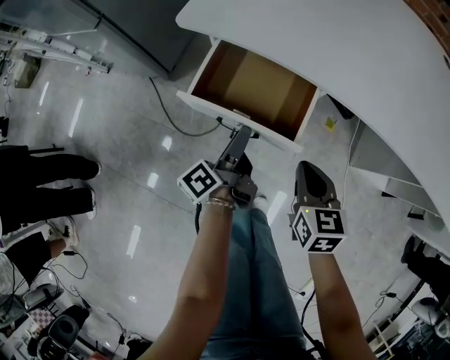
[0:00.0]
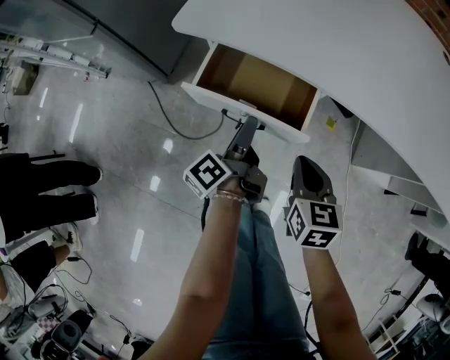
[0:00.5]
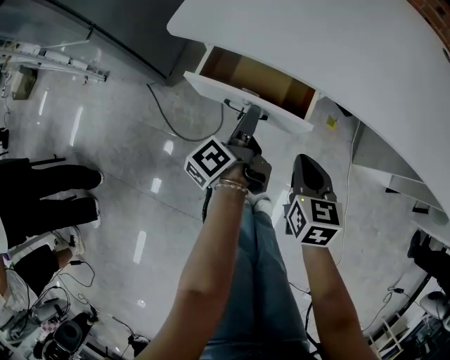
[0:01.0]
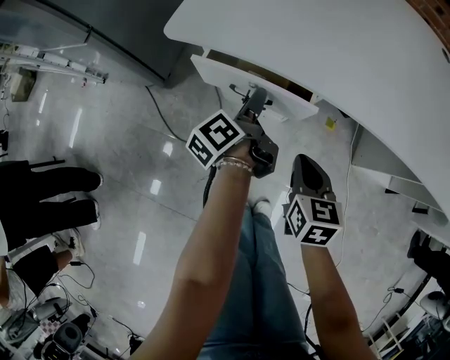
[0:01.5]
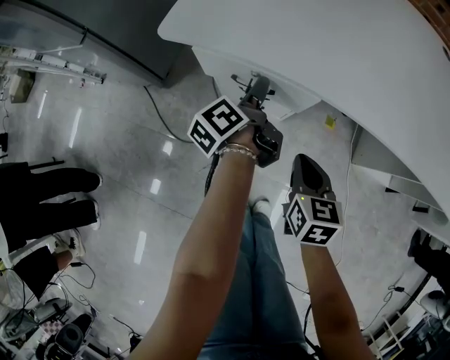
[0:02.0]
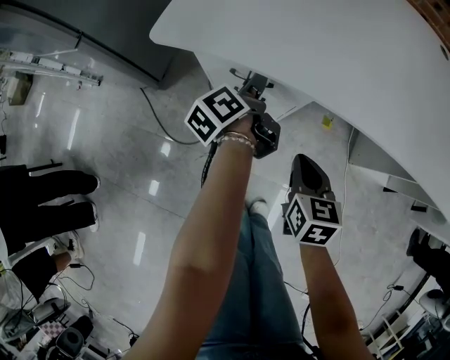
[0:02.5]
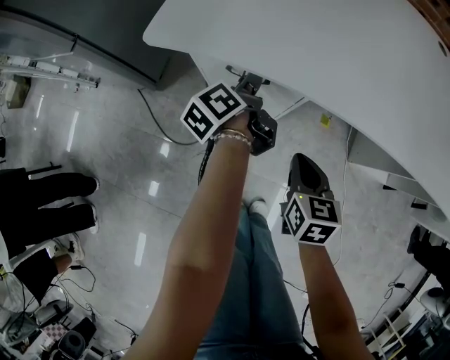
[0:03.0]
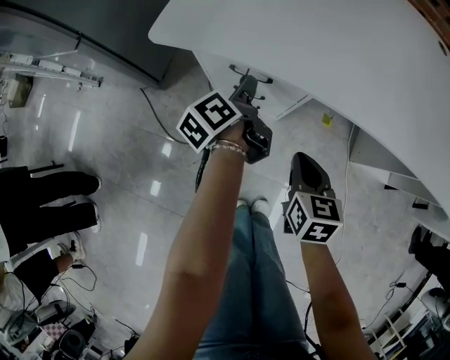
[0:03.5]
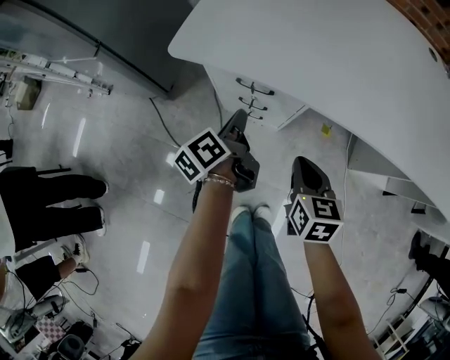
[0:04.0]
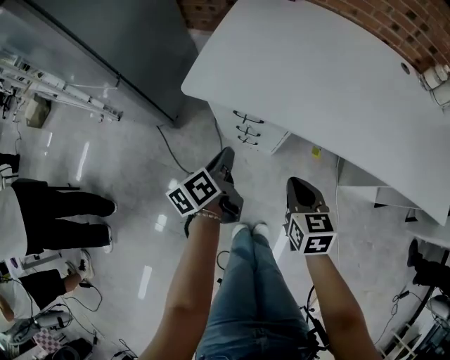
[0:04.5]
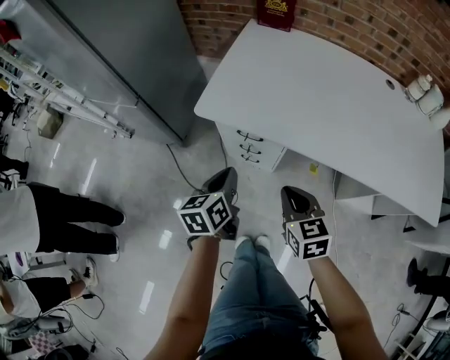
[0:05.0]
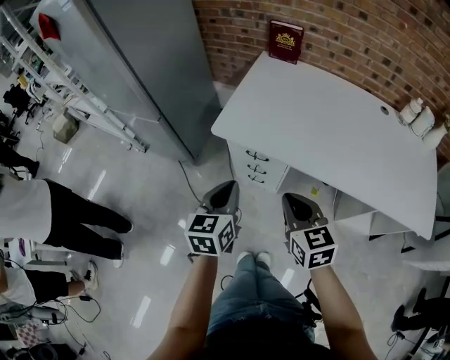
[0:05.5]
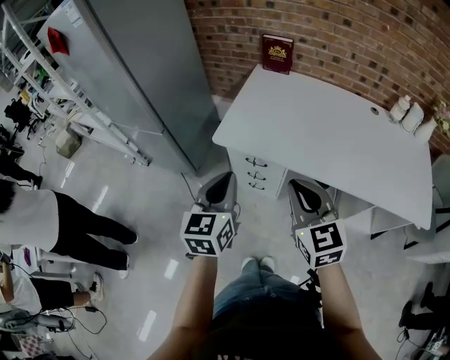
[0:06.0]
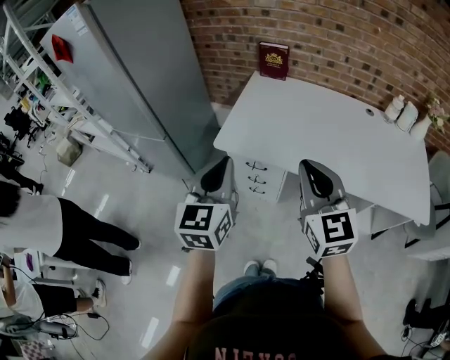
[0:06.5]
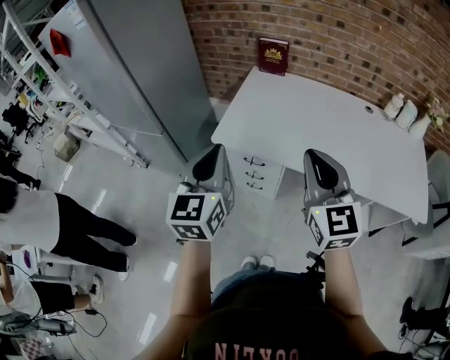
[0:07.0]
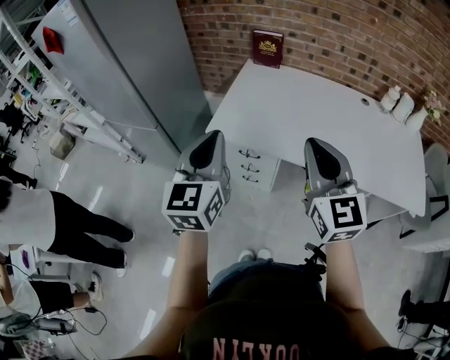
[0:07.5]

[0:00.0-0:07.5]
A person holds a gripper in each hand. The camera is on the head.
0:00.0 to 0:02.0: The left gripper shifts roughly 15 cm forward.
0:02.0 to 0:04.0: The left gripper moves backward, roughly 5 cm, and closes its fingers.
0:04.0 to 0:05.5: The right gripper shifts about 25 cm upward, and changes its angle by some 30 degrees. The left gripper moves upward and backward, about 30 cm, and twists approximately 50 degrees clockwise, seen from behind.
0:05.5 to 0:07.5: Both grippers travel together upward, approximately 20 cm. The left gripper rotates approximately 20 degrees; the right gripper swivels some 30 degrees.

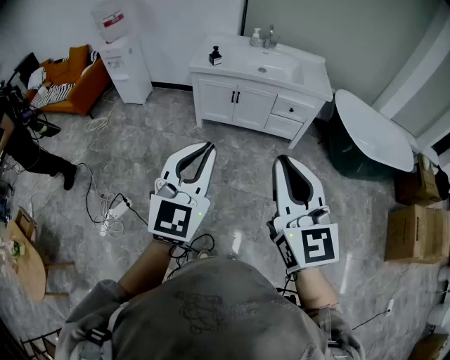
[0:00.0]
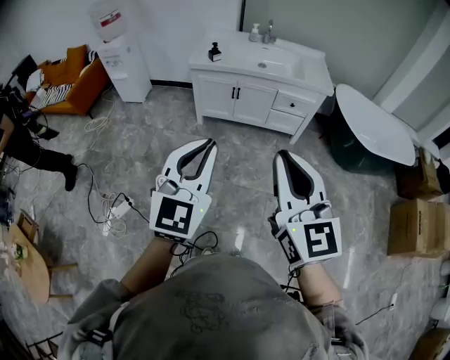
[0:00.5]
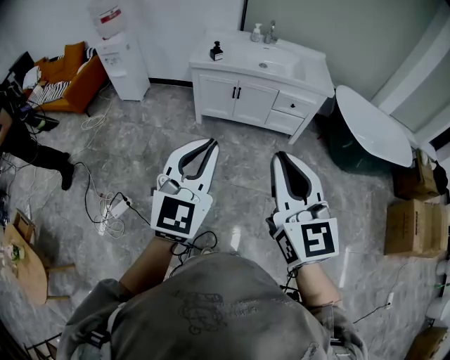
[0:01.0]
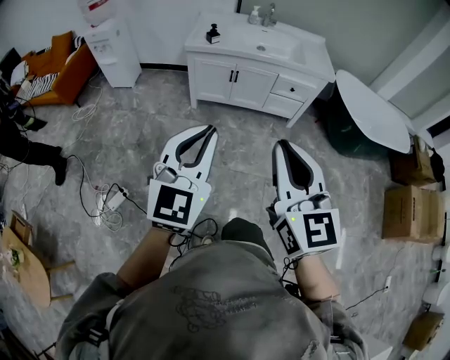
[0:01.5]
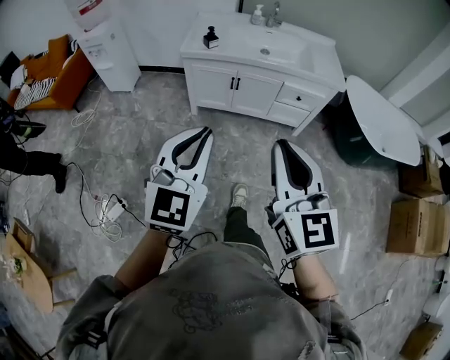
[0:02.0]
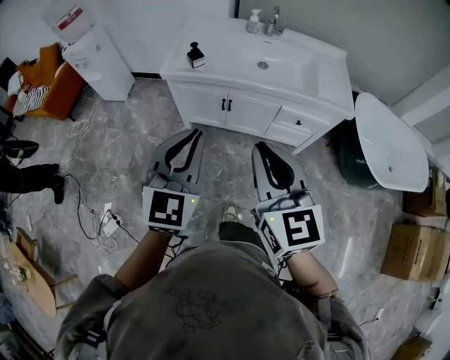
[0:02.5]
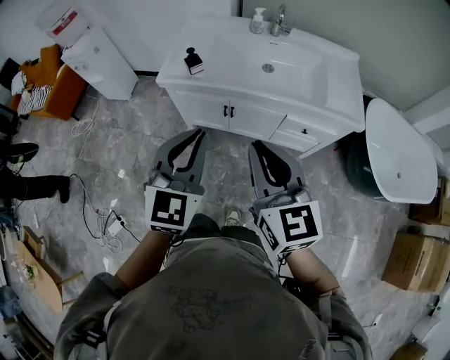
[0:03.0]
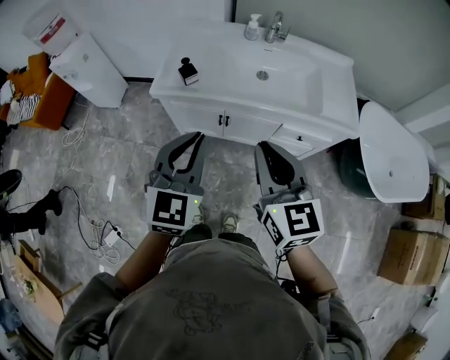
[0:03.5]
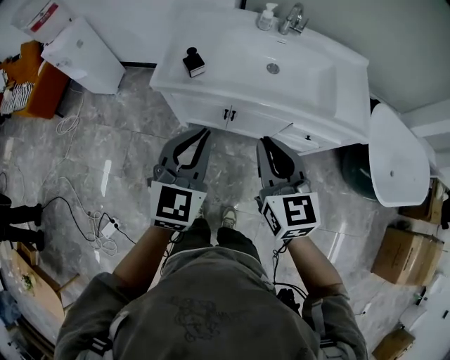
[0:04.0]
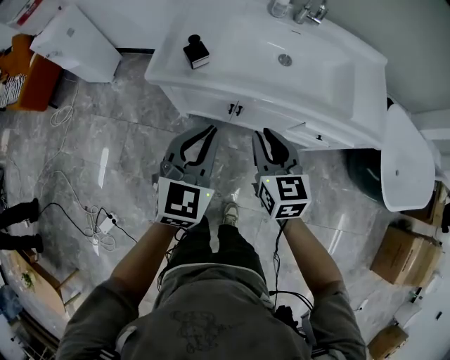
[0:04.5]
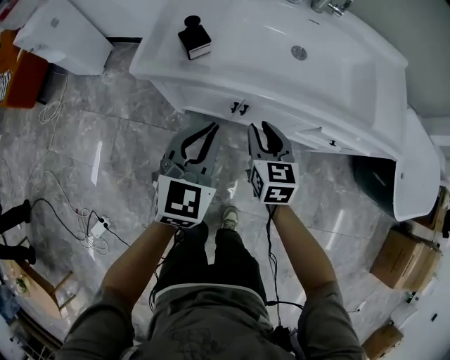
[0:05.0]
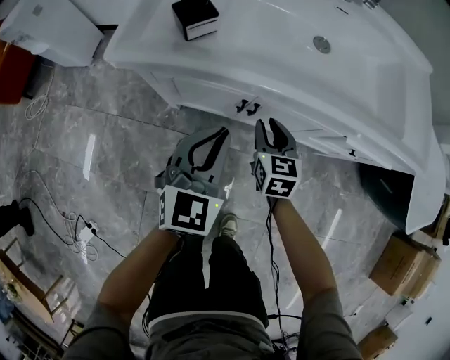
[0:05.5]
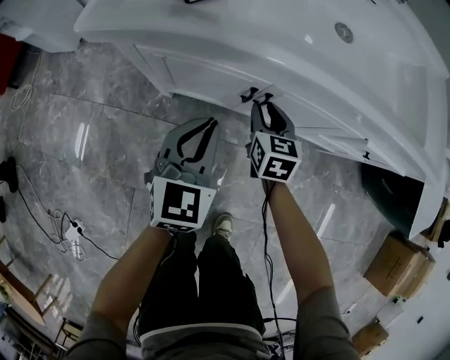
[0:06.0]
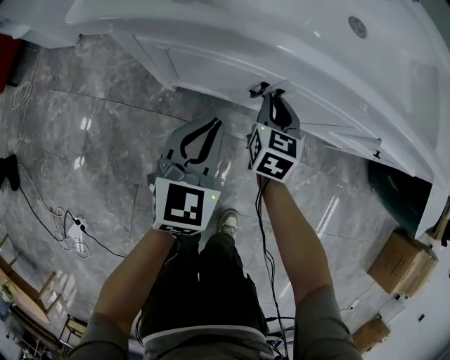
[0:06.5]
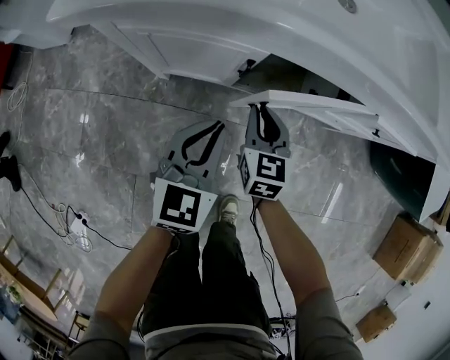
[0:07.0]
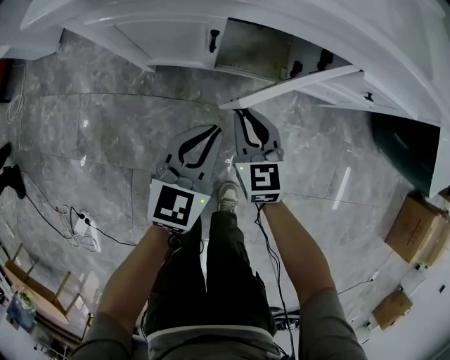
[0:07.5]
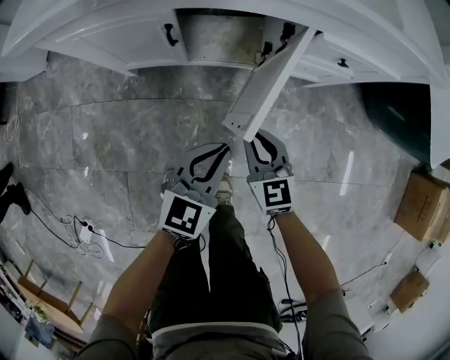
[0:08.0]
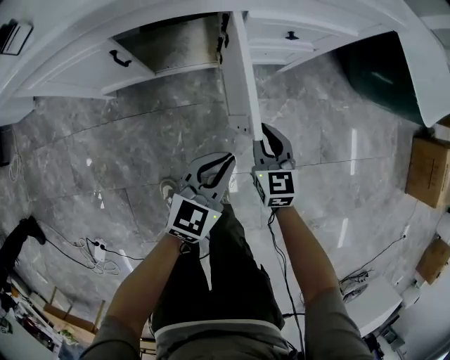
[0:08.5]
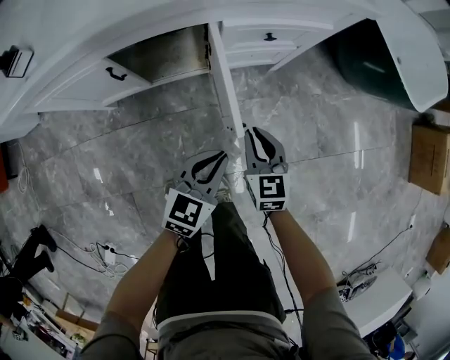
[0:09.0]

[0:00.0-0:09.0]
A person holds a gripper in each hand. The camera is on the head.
0:00.0 to 0:02.0: The two grippers go about 20 cm forward.
0:02.0 to 0:04.5: The two grippers travel together, forward, roughly 50 cm. The right gripper shifts some 25 cm downward, and changes its angle by roughly 30 degrees.
0:04.5 to 0:07.0: Both grippers travel together downward, roughly 40 cm.
0:07.0 to 0:09.0: The left gripper is displaced to the right by approximately 30 cm, and changes its angle by roughly 30 degrees; the right gripper is displaced to the right and backward by roughly 35 cm.

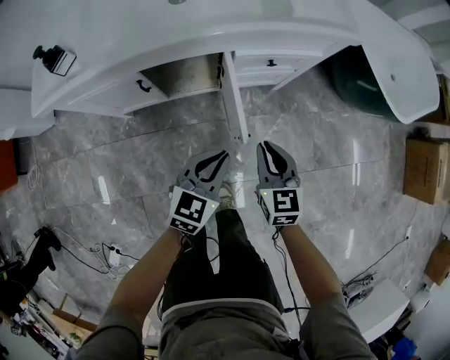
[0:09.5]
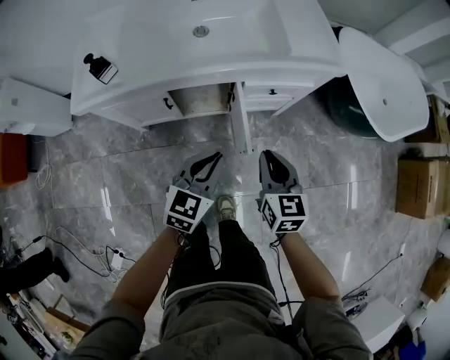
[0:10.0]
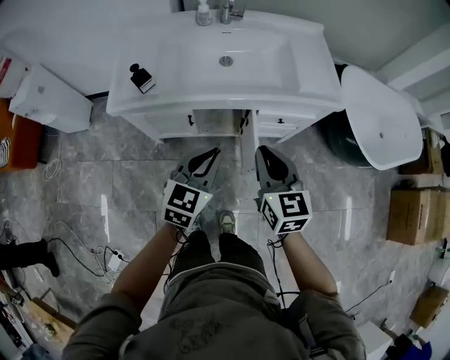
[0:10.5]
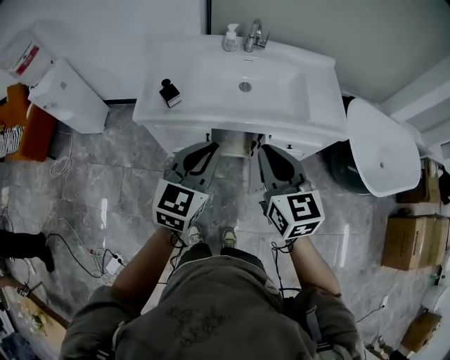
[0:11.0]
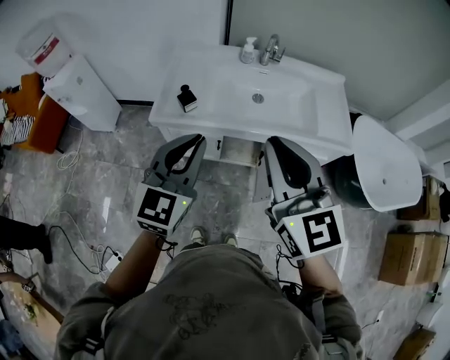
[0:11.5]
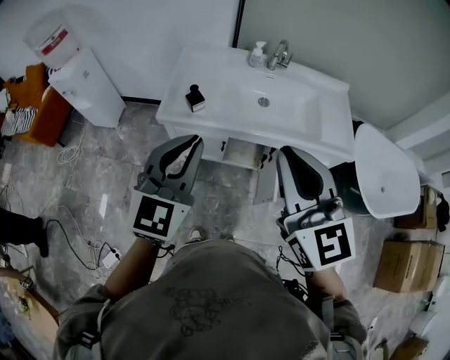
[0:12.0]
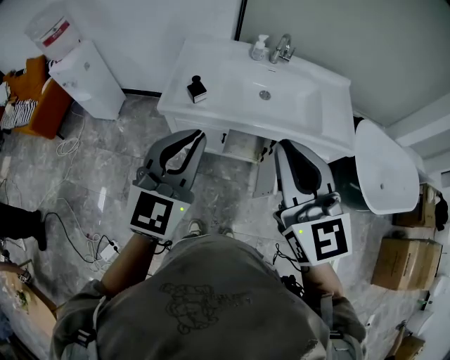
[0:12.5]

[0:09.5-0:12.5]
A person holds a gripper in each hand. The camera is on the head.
0:09.5 to 0:11.0: Both grippers move upward and to the left, about 40 cm. The left gripper turns by roughly 30 degrees. Meanwhile the right gripper turns by some 20 degrees.
0:11.0 to 0:12.5: Both grippers move upward, to the left and backward, approximately 15 cm.

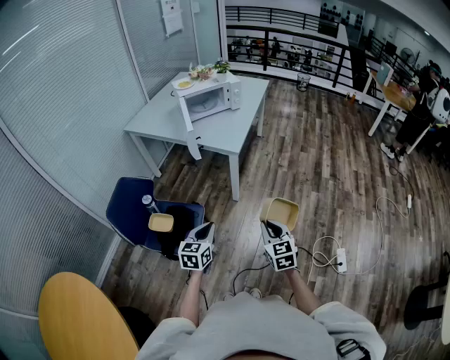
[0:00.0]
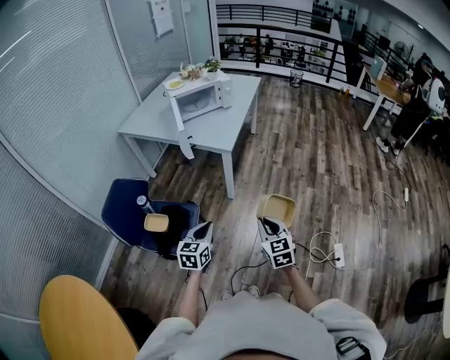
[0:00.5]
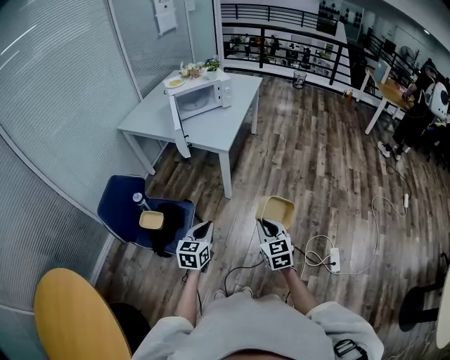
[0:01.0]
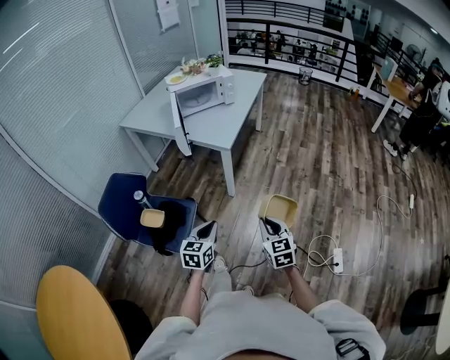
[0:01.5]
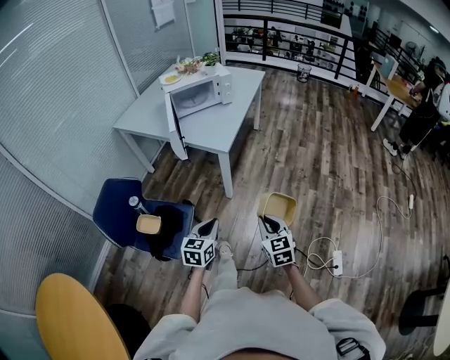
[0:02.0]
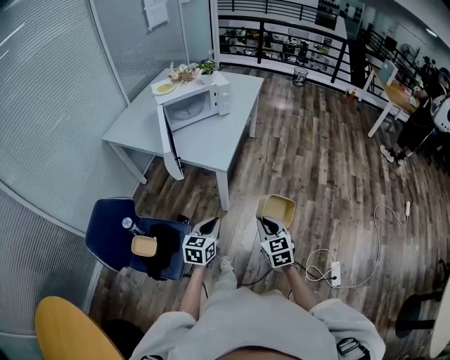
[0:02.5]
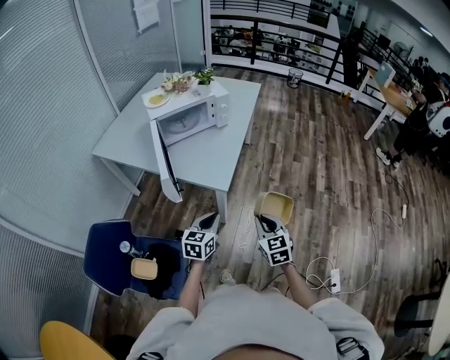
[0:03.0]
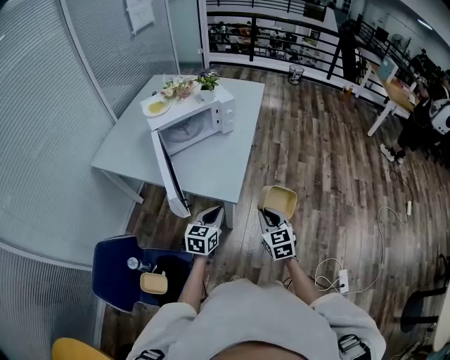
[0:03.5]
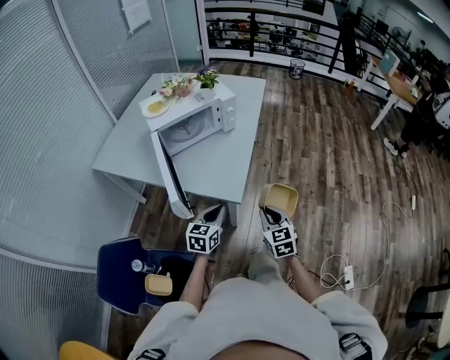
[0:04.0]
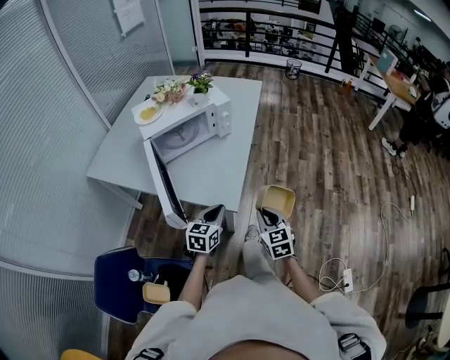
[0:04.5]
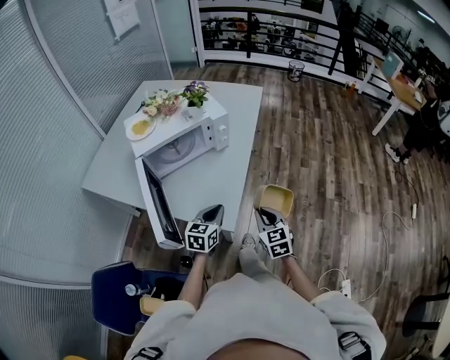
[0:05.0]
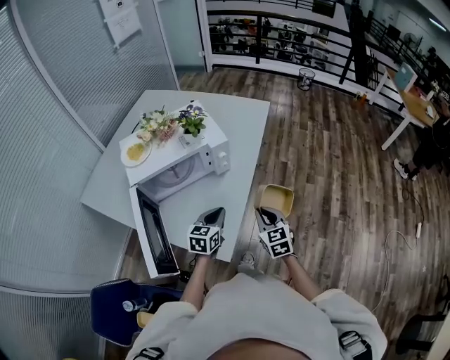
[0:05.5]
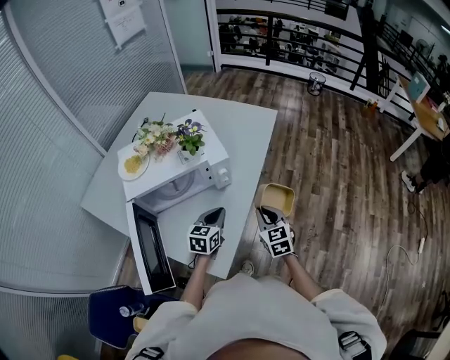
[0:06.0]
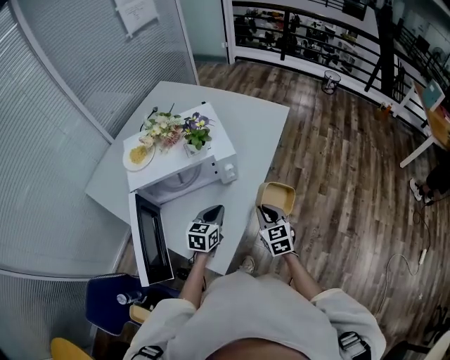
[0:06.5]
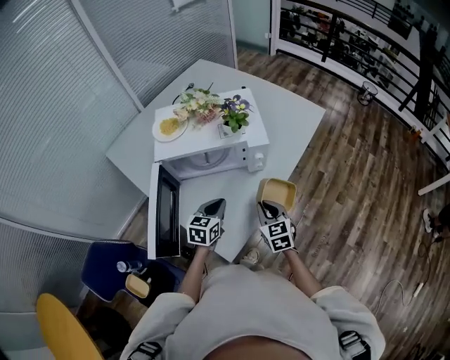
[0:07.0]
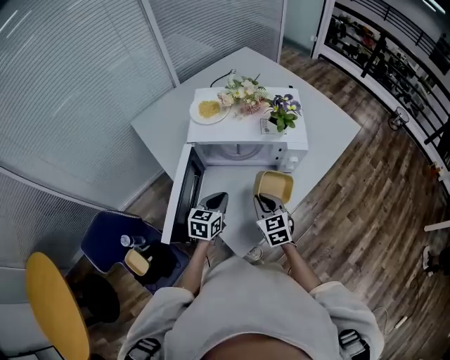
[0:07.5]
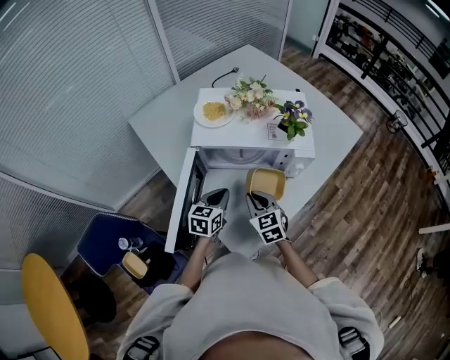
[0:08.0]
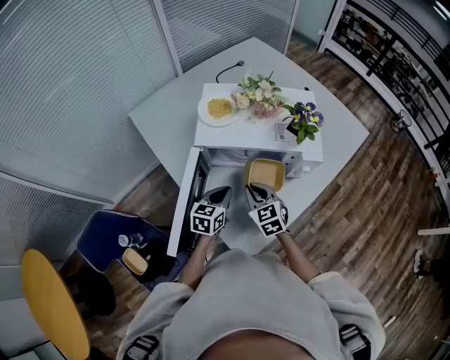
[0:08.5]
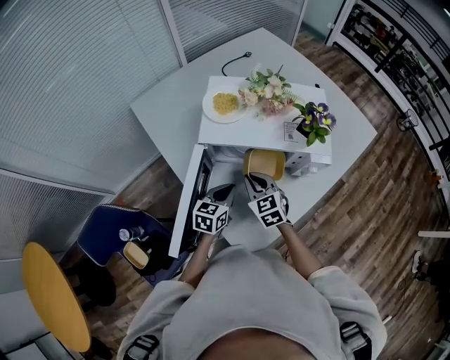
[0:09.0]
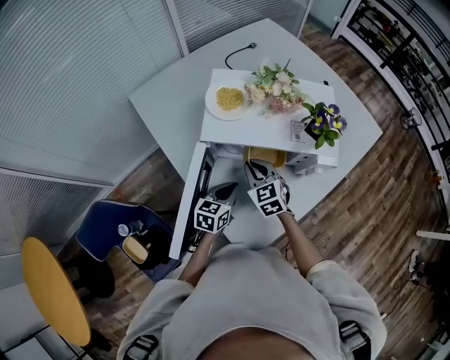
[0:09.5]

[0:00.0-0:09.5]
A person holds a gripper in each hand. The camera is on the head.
0:00.0 to 0:02.0: The right gripper heads forward and to the right, covering about 10 cm. Meanwhile the left gripper moves to the right and forward, some 10 cm.
0:02.0 to 0:04.0: Both grippers move forward, some 35 cm.
0:04.0 to 0:05.5: The two grippers go roughly 25 cm forward.
0:05.5 to 0:07.5: The left gripper moves about 15 cm, and turns by approximately 30 degrees, while the right gripper shifts by approximately 20 cm, and changes its angle by about 30 degrees.
0:07.5 to 0:09.5: The right gripper goes roughly 15 cm forward and to the left; the left gripper is displaced forward by roughly 5 cm.
